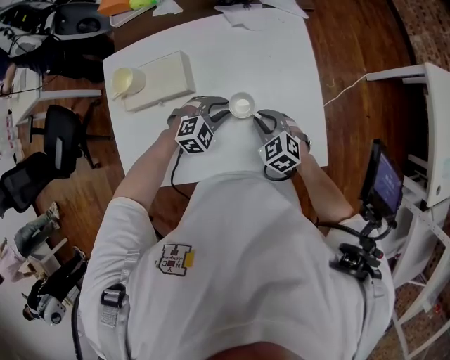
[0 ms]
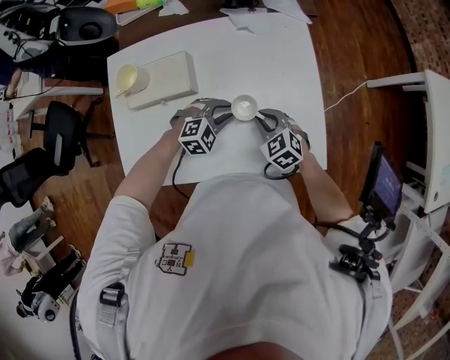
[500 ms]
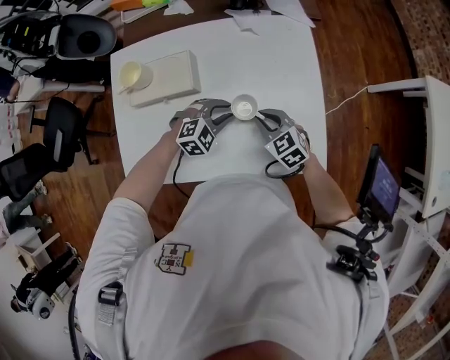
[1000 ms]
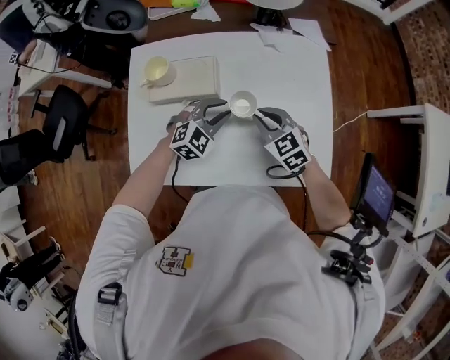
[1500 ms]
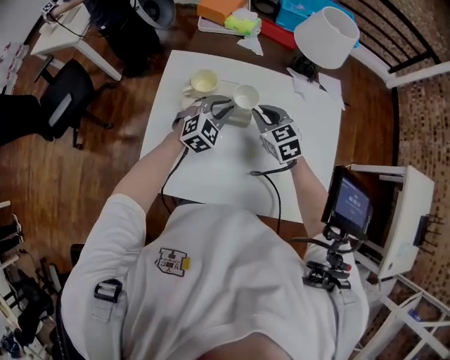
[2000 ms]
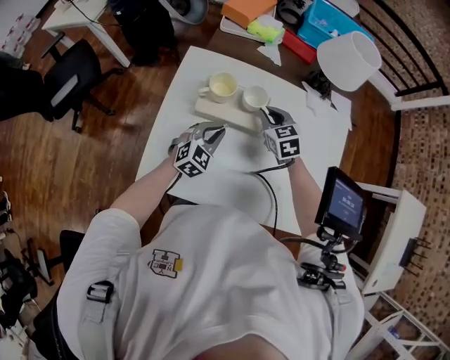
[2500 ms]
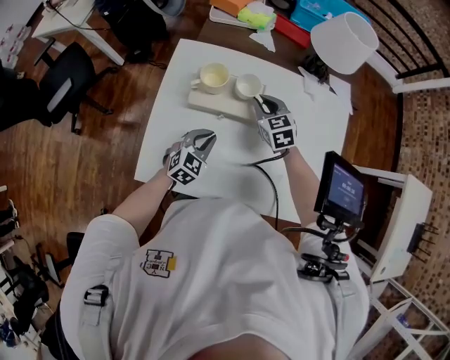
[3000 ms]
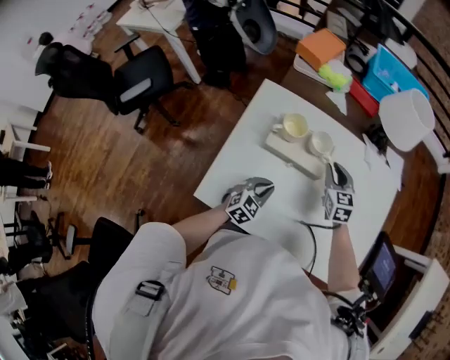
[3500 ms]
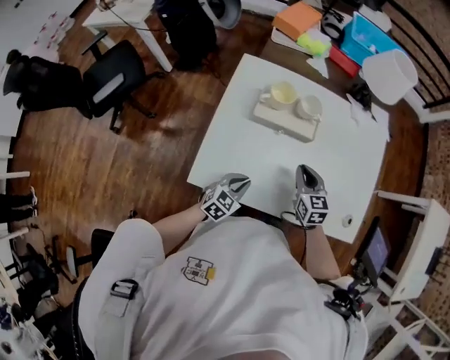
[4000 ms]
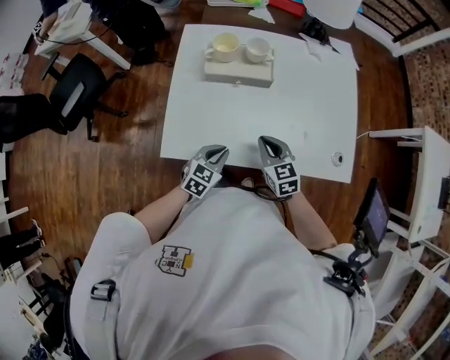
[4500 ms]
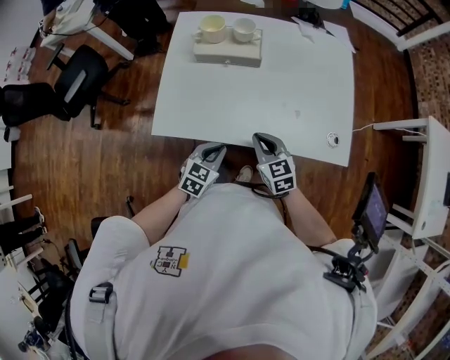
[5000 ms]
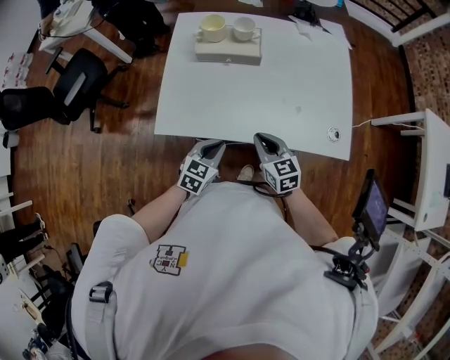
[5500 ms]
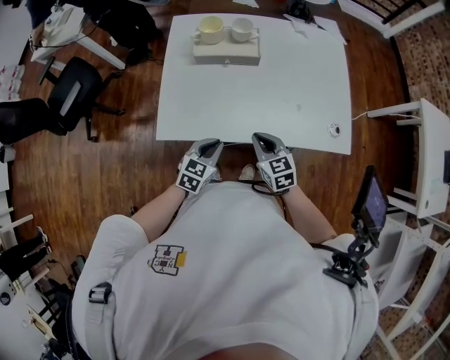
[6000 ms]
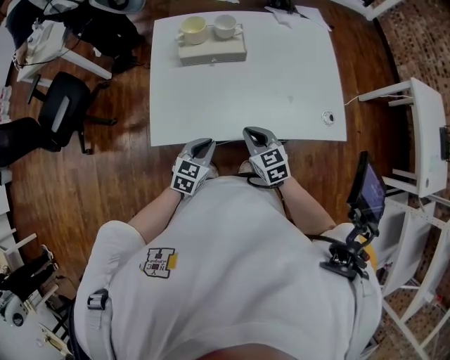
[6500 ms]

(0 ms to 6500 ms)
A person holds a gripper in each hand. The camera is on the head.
0 ms - 2000 ms: The left gripper moves to the left, upward and forward, some 25 cm, and swivels some 40 degrees. The right gripper moves to the left, forward and upward, approximately 25 cm.
2000 ms - 4500 ms: The grippers both shift backward by about 25 cm. The left gripper changes its angle by some 30 degrees.
4500 ms - 6500 ms: The two grippers go about 5 cm backward.

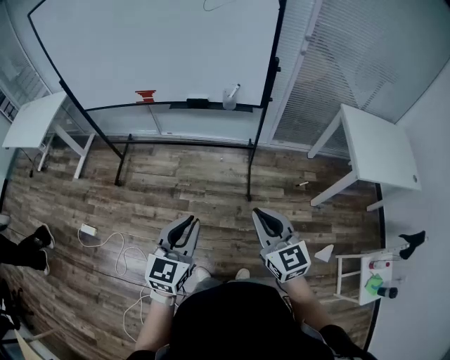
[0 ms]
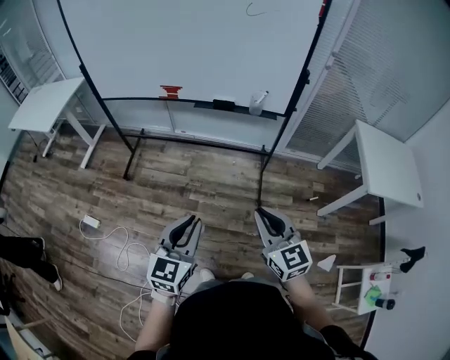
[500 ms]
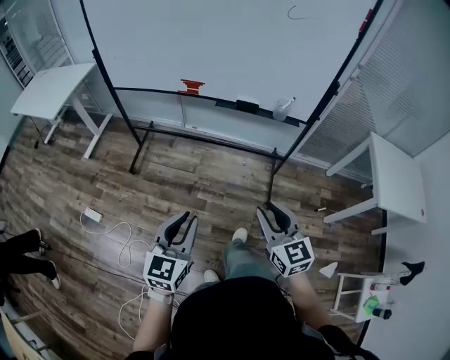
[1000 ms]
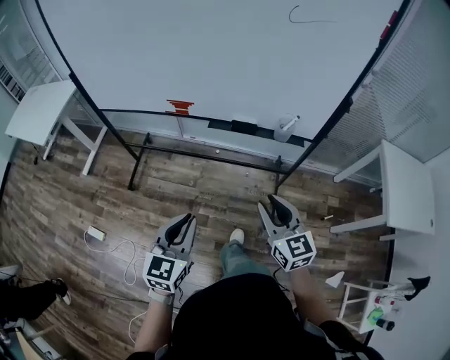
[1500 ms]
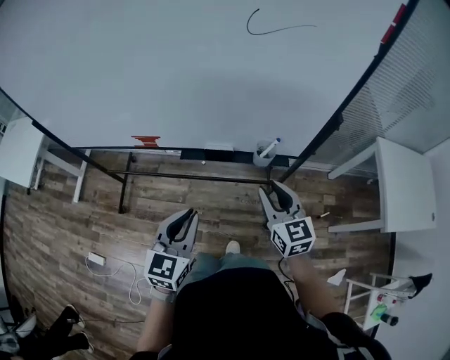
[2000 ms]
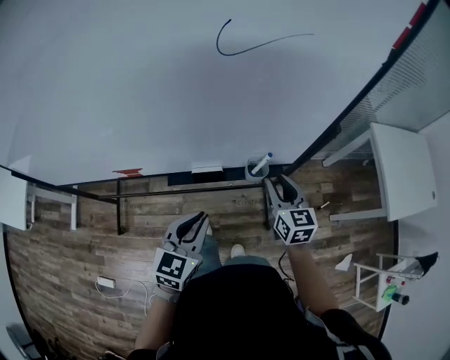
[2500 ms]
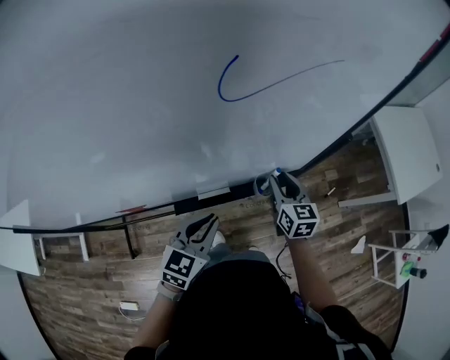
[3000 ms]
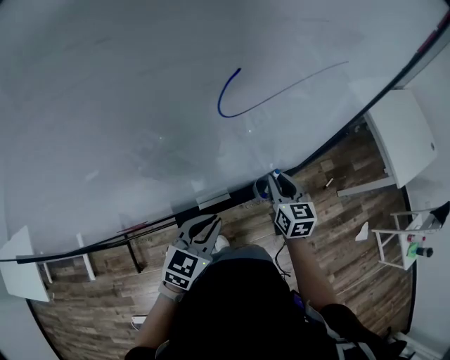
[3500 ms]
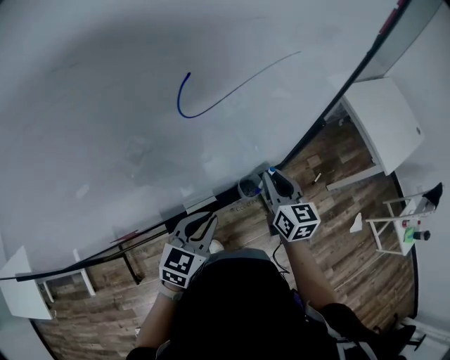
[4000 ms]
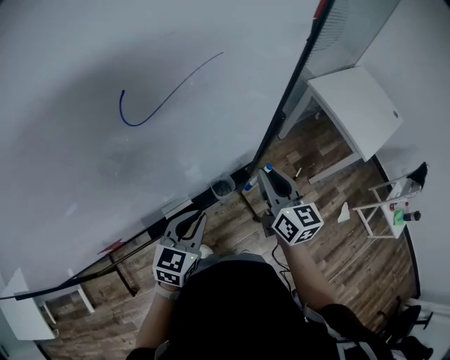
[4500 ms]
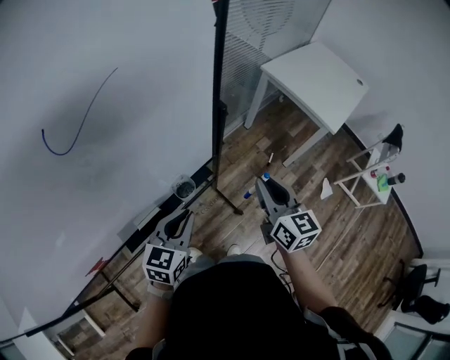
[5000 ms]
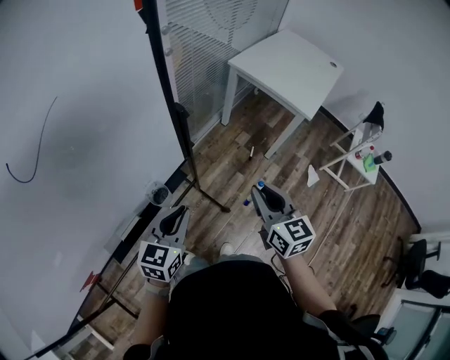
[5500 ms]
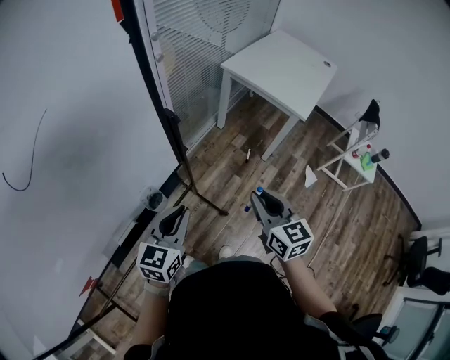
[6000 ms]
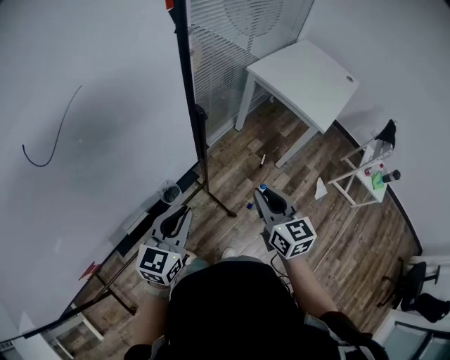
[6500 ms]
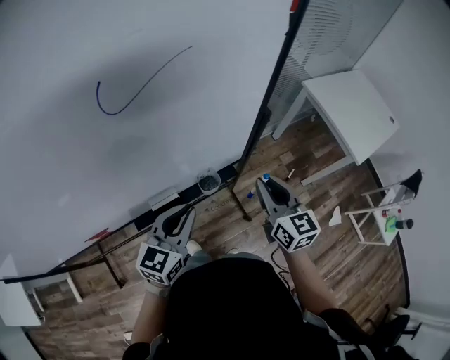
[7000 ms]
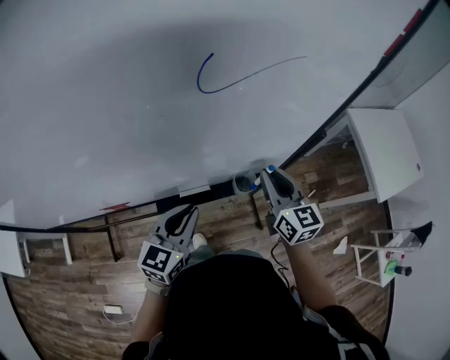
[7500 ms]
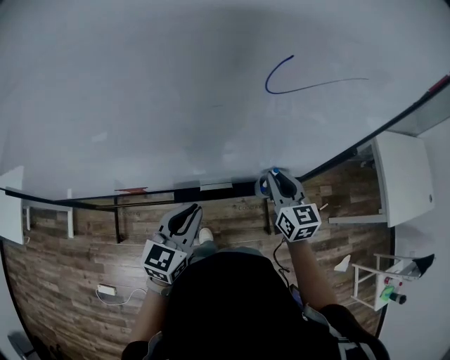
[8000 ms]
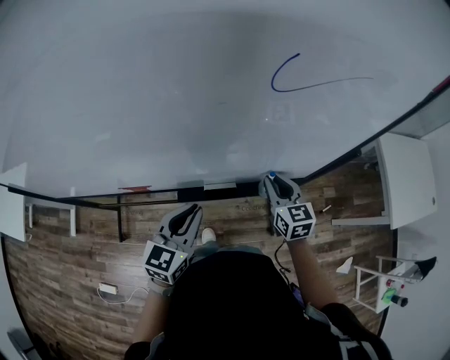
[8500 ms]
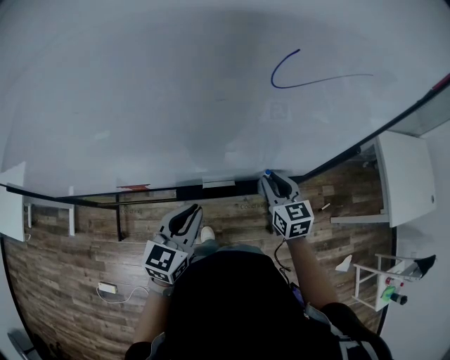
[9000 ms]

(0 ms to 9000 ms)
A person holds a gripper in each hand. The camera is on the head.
0 ms - 2000 ms: Both grippers are carried forward, some 40 cm. The right gripper opens its fingers.
2000 ms - 4500 ms: The right gripper moves about 10 cm downward and comes back, and turns by roughly 40 degrees; the left gripper ends up approximately 25 cm from where it was, and turns by about 40 degrees.
4500 ms - 7000 ms: The right gripper reaches roughly 20 cm to the right, then returns, while the left gripper goes to the right and returns, approximately 15 cm each way.
7000 ms - 9000 ms: The right gripper heads to the left, downward and forward, covering about 20 cm, and turns by approximately 30 degrees. The left gripper moves to the left, approximately 15 cm, and turns by about 20 degrees.

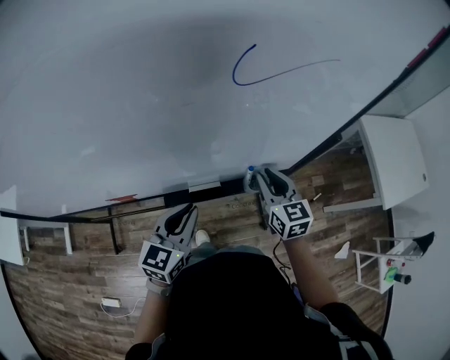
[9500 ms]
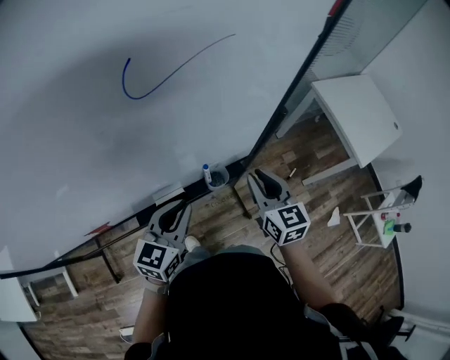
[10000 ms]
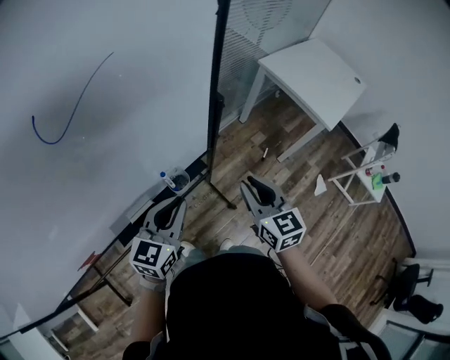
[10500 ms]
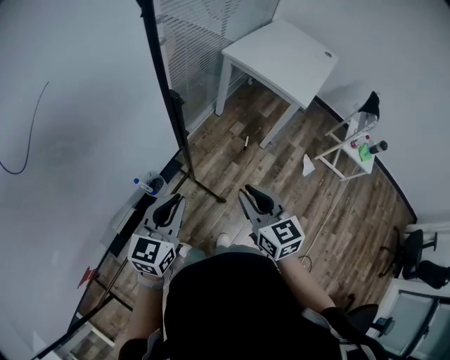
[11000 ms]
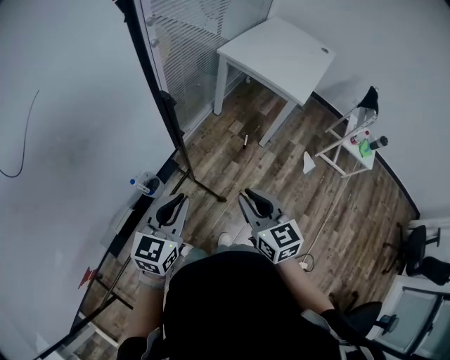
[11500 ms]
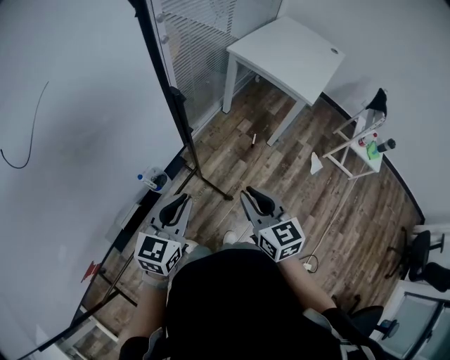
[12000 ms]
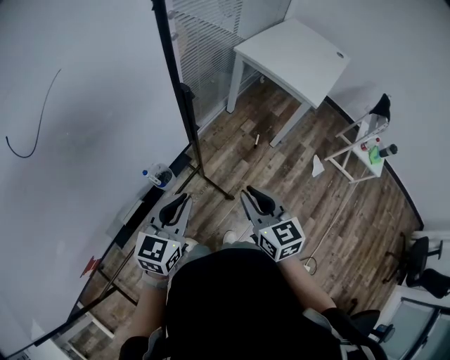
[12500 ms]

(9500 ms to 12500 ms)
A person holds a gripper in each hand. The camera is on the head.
9500 ms - 11000 ms: The left gripper shifts by roughly 25 cm, and turns by roughly 40 degrees, while the right gripper ends up about 30 cm from where it was, and rotates some 40 degrees.
11000 ms - 12500 ms: There are only small adjustments of the grippers.

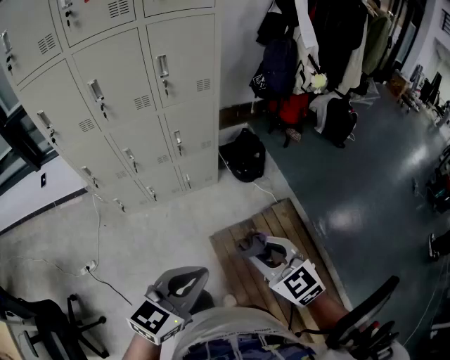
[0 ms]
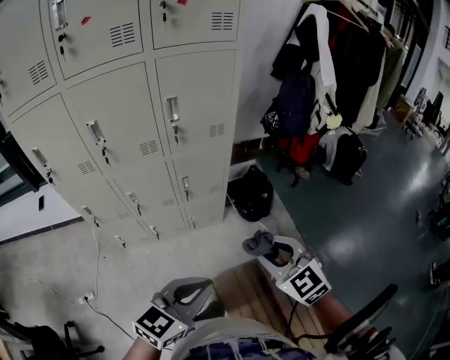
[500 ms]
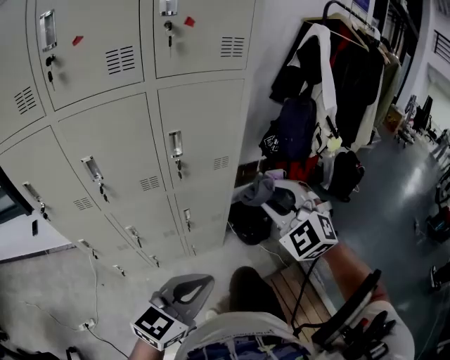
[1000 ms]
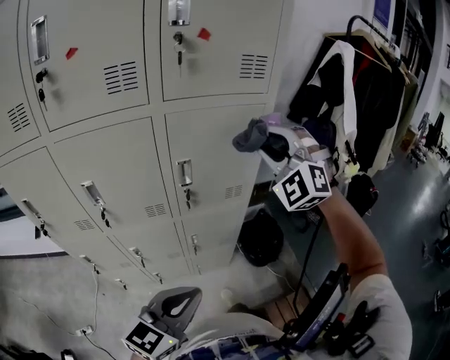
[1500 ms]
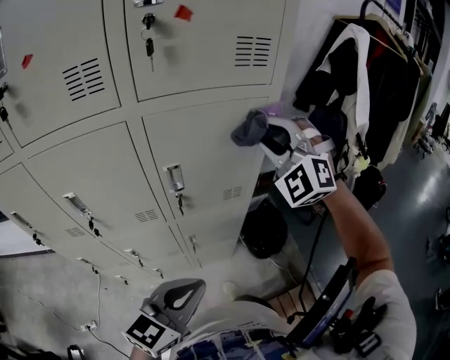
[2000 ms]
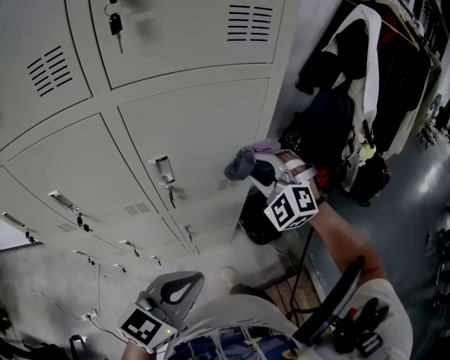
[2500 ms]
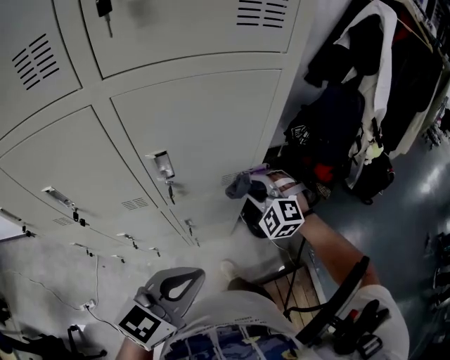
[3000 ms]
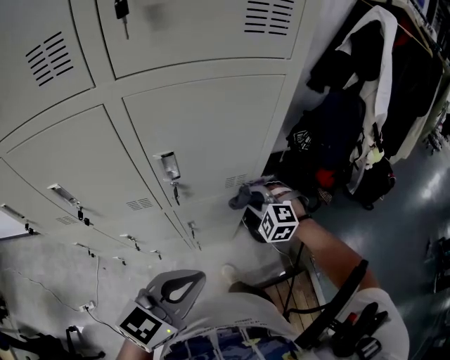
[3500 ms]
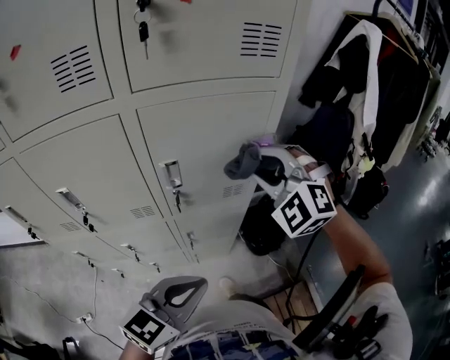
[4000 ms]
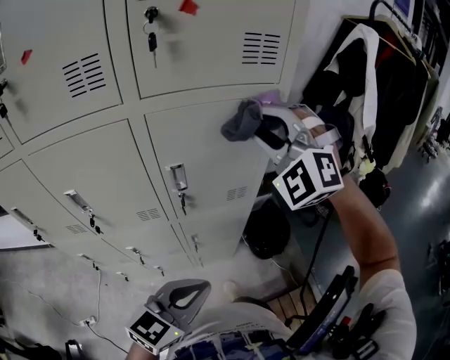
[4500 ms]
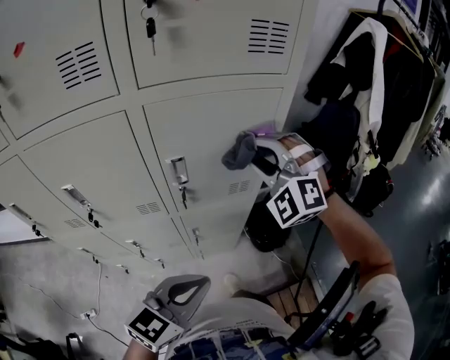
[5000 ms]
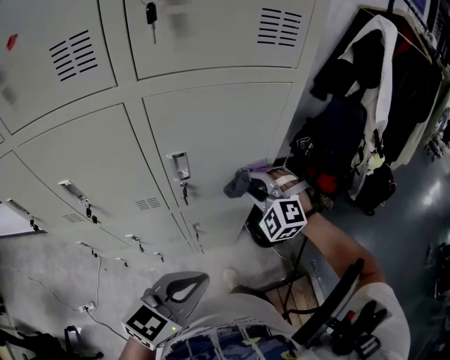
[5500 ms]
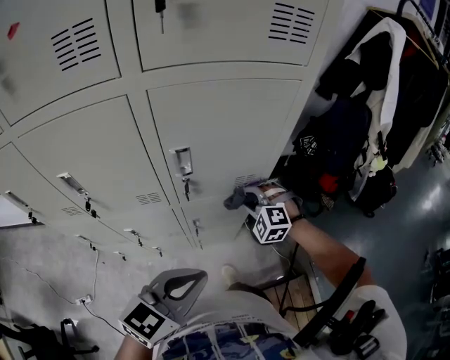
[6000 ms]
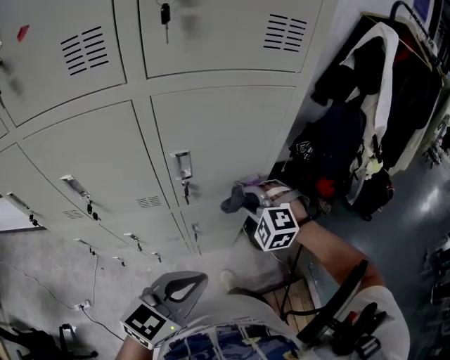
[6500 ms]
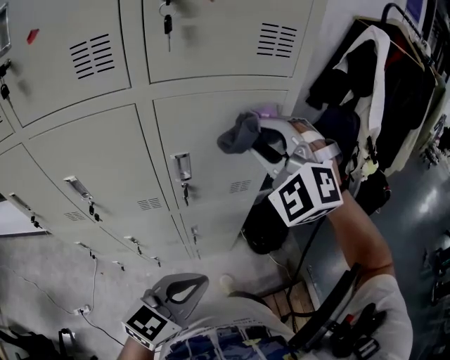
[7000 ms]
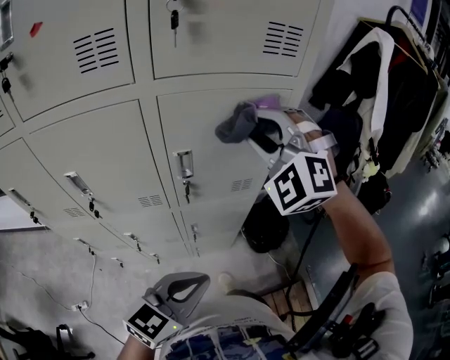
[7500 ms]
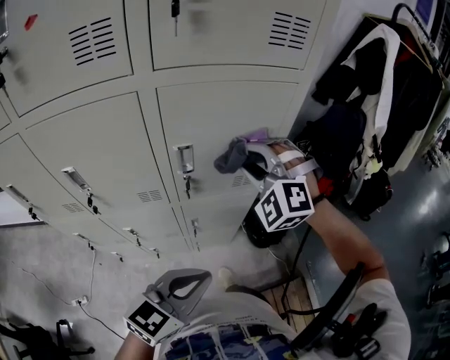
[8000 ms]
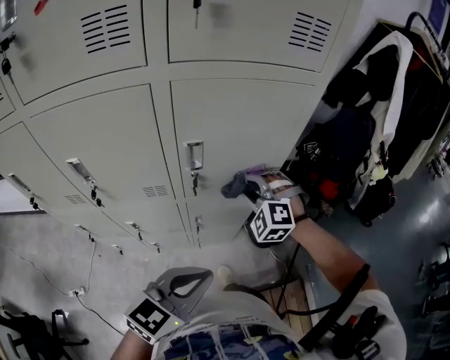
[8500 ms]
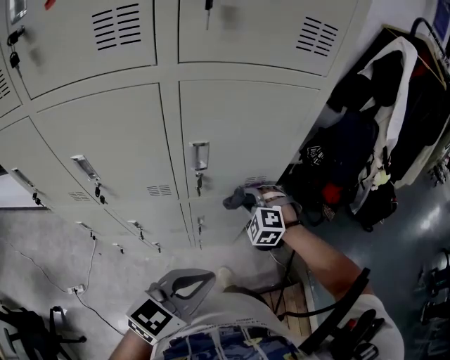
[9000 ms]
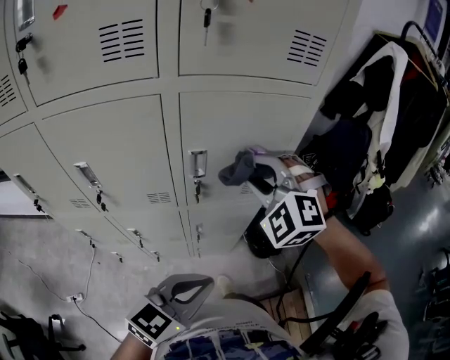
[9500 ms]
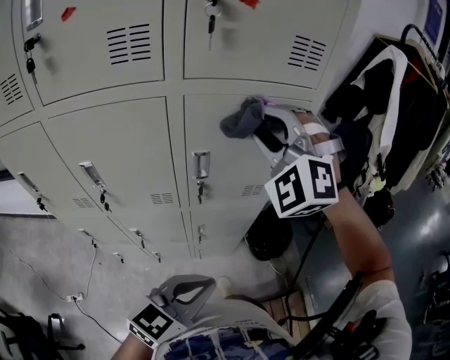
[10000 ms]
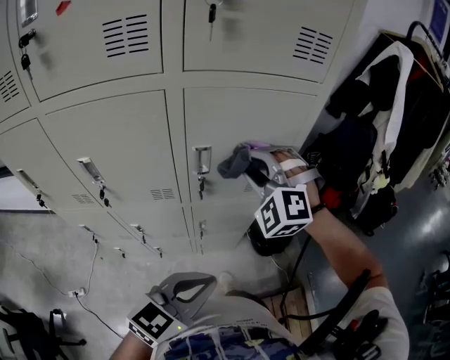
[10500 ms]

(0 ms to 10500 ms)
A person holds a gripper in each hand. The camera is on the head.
0 ms - 2000 ms: The pair of grippers is taken forward, approximately 60 cm. The right gripper moves upward, some 25 cm, and twists approximately 60 degrees counterclockwise, seen from behind.
2000 ms - 4000 ms: The right gripper travels downward and back again, about 35 cm each way.
4000 ms - 6500 ms: The right gripper goes up and down, approximately 40 cm each way, reversing 2 times, and turns by roughly 20 degrees.
6500 ms - 8500 ms: The right gripper travels upward and back again, about 25 cm each way.
8500 ms - 10500 ms: The right gripper goes up and down, some 35 cm each way, reversing 2 times.
